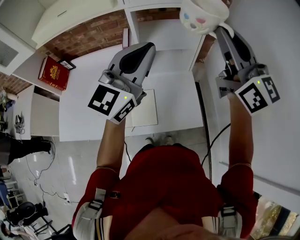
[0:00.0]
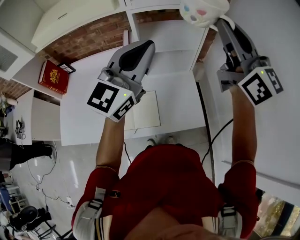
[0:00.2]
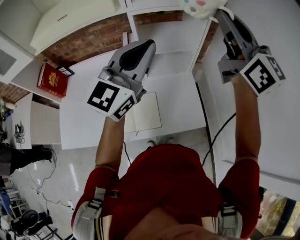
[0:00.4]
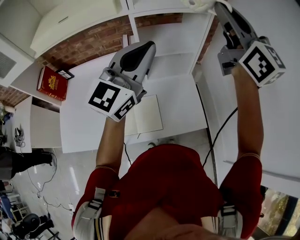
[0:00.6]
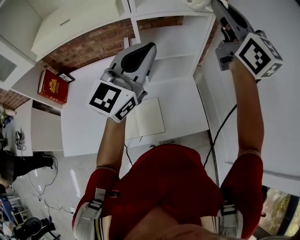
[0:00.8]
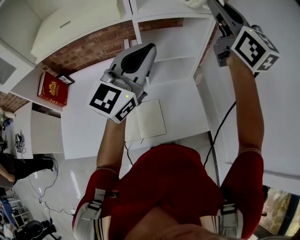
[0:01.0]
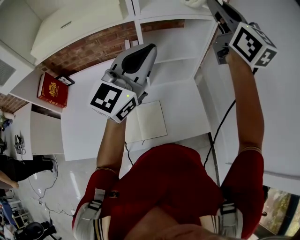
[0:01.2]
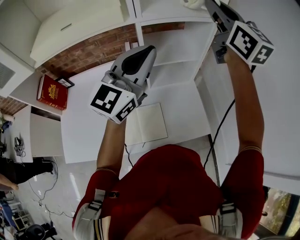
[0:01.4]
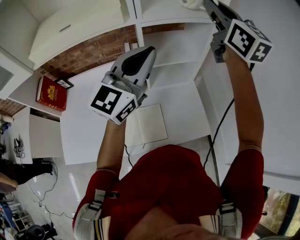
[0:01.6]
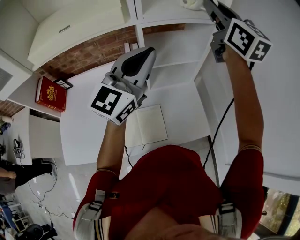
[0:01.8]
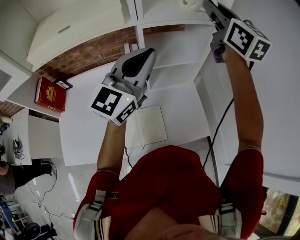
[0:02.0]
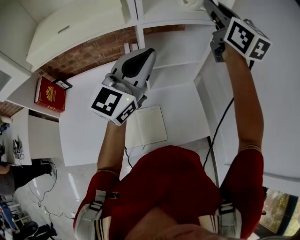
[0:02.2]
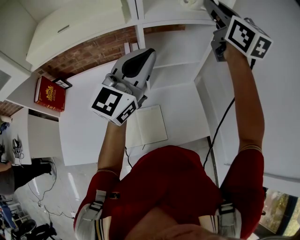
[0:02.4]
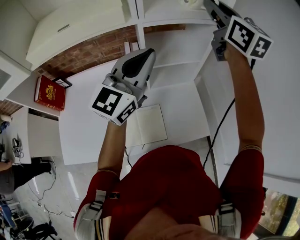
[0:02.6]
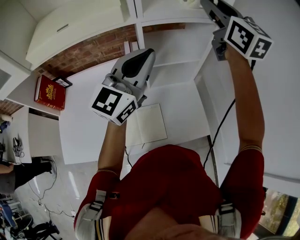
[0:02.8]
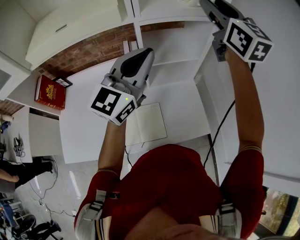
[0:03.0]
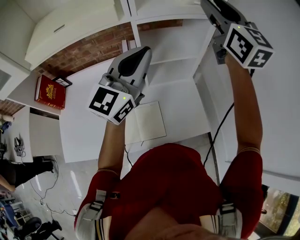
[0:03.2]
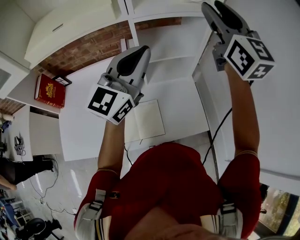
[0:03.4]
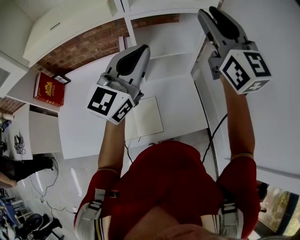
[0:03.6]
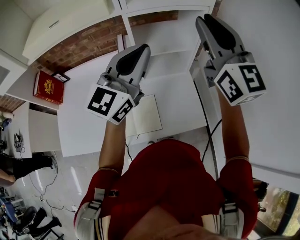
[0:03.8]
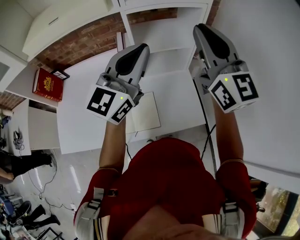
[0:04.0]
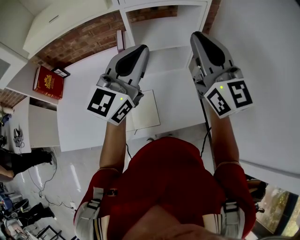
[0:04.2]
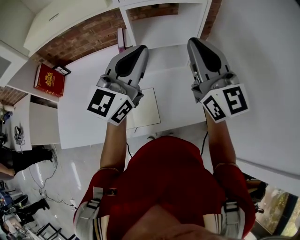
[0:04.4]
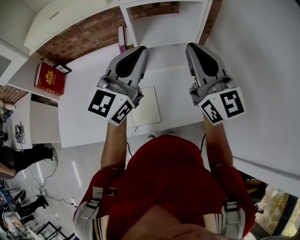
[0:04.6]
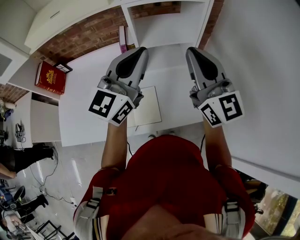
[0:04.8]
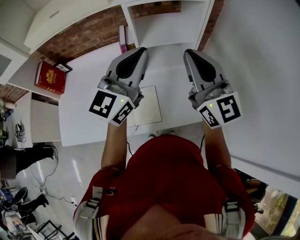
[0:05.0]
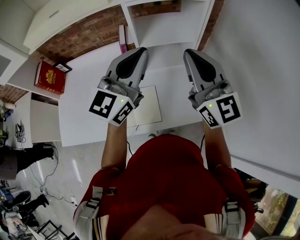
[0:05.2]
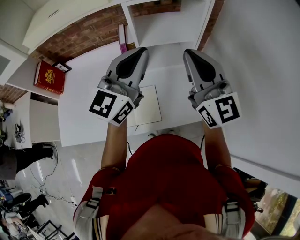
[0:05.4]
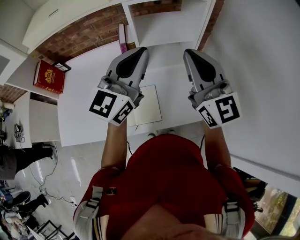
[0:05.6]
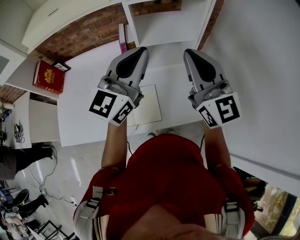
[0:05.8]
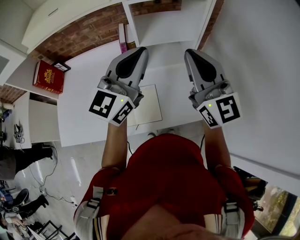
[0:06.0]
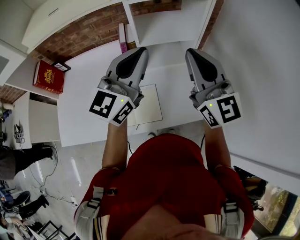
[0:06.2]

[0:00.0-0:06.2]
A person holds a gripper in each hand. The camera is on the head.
0.0 to 1.6 s: The left gripper moves to the left and forward, roughly 10 cm, while the right gripper heads forward and to the left, covering some 15 cm.
1.6 to 3.2 s: The right gripper opens.
3.2 to 4.6 s: The right gripper heads backward and downward, covering about 20 cm, and closes up; the left gripper shifts about 5 cm backward.
4.6 to 6.2 s: The grippers stay close to where they were, moving slightly.

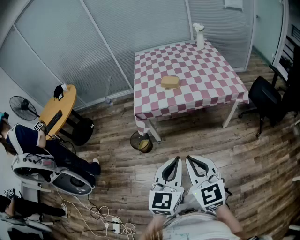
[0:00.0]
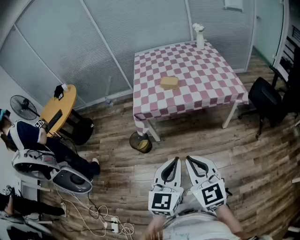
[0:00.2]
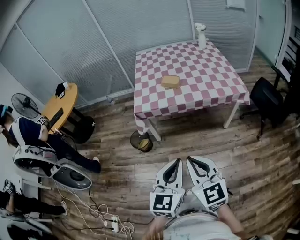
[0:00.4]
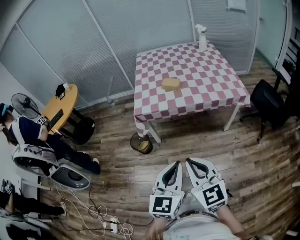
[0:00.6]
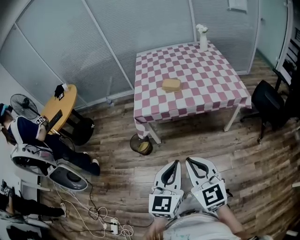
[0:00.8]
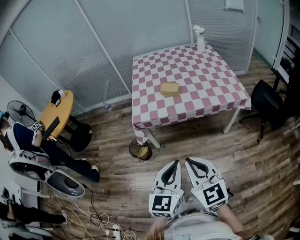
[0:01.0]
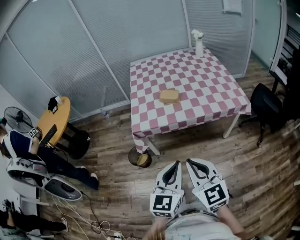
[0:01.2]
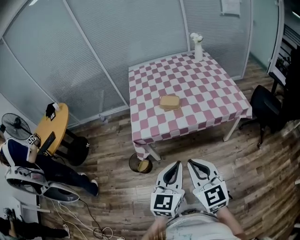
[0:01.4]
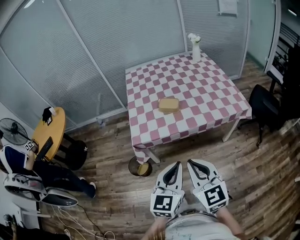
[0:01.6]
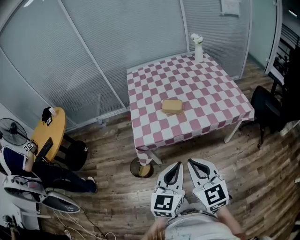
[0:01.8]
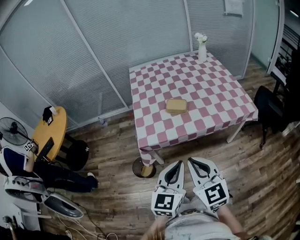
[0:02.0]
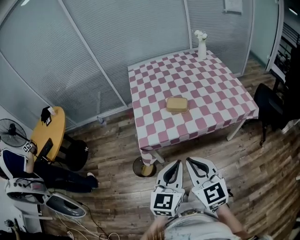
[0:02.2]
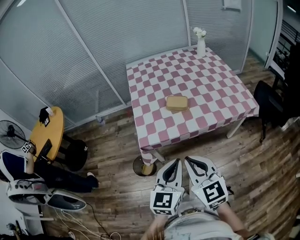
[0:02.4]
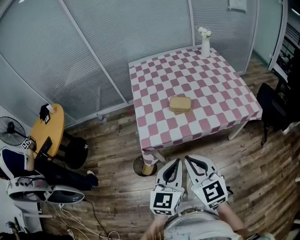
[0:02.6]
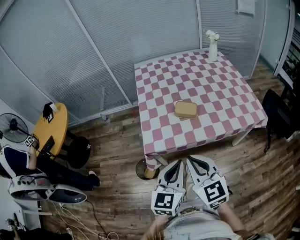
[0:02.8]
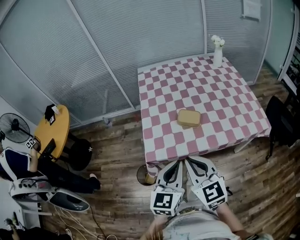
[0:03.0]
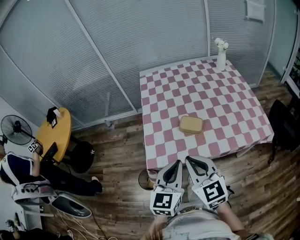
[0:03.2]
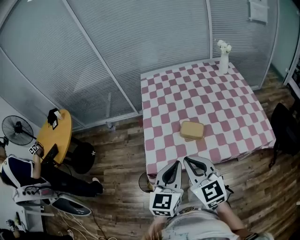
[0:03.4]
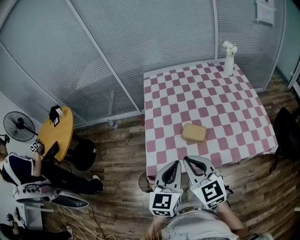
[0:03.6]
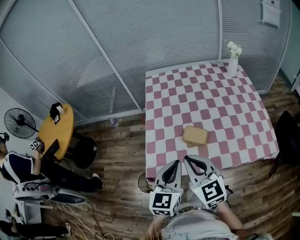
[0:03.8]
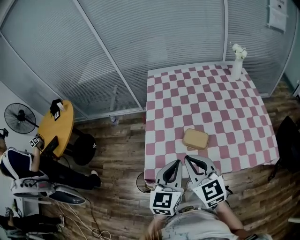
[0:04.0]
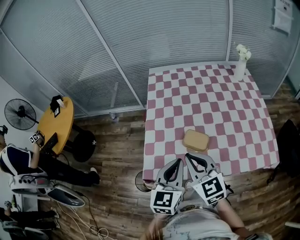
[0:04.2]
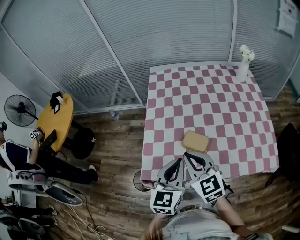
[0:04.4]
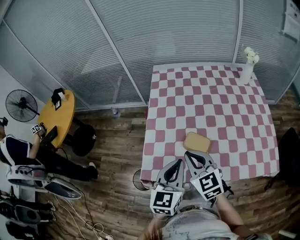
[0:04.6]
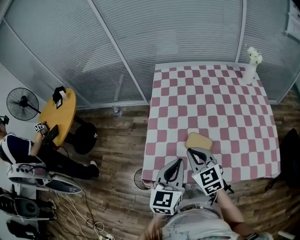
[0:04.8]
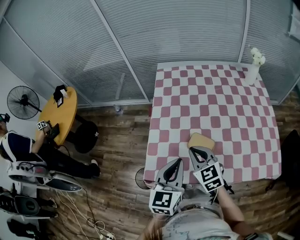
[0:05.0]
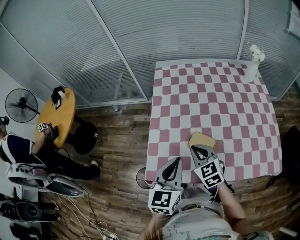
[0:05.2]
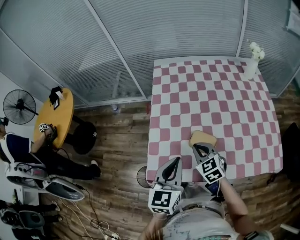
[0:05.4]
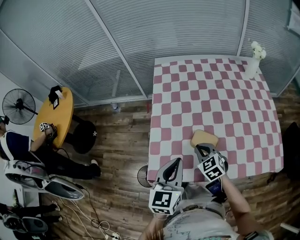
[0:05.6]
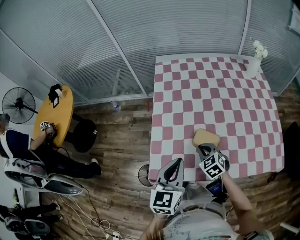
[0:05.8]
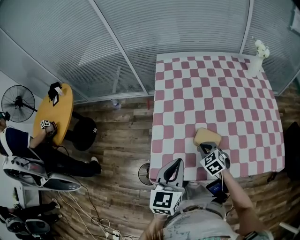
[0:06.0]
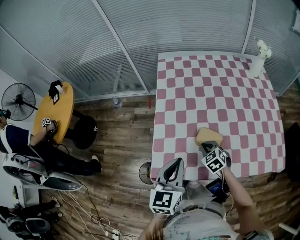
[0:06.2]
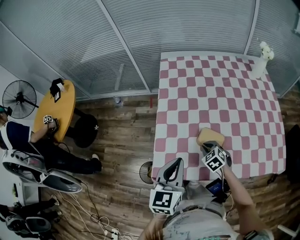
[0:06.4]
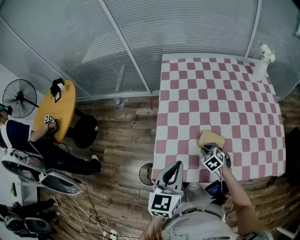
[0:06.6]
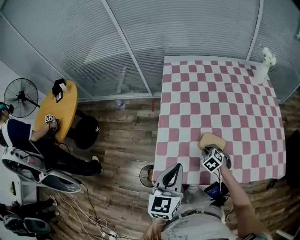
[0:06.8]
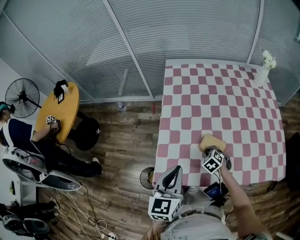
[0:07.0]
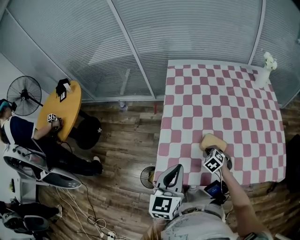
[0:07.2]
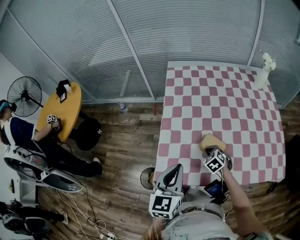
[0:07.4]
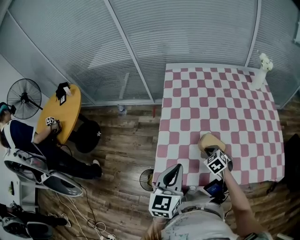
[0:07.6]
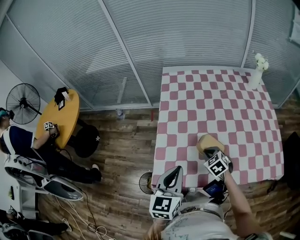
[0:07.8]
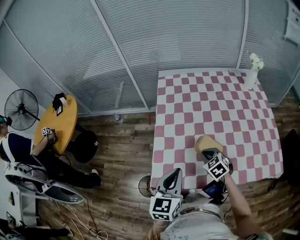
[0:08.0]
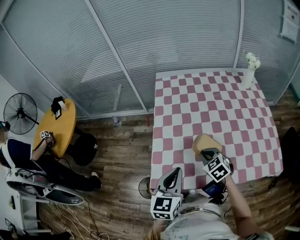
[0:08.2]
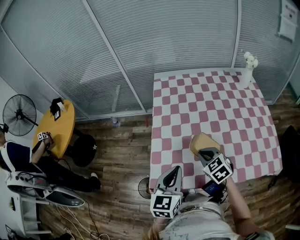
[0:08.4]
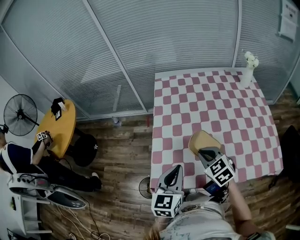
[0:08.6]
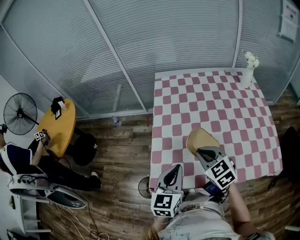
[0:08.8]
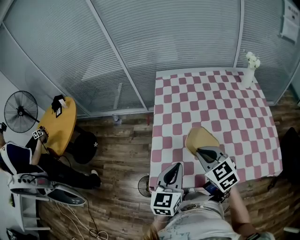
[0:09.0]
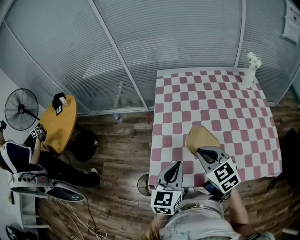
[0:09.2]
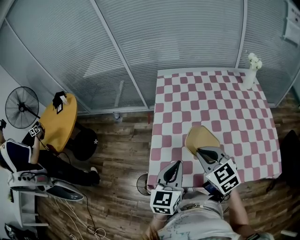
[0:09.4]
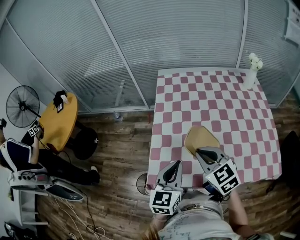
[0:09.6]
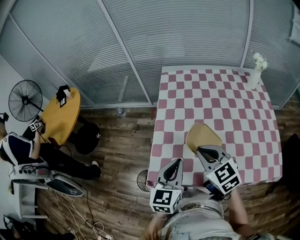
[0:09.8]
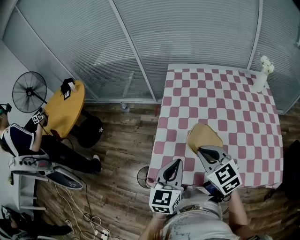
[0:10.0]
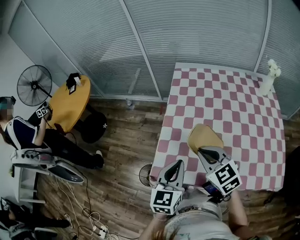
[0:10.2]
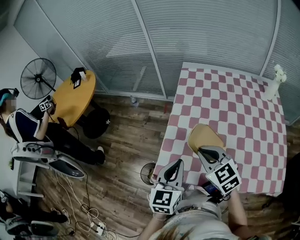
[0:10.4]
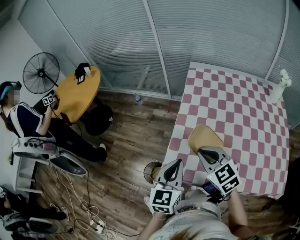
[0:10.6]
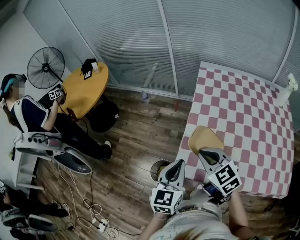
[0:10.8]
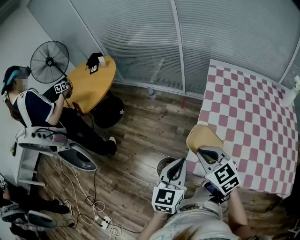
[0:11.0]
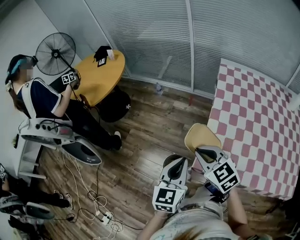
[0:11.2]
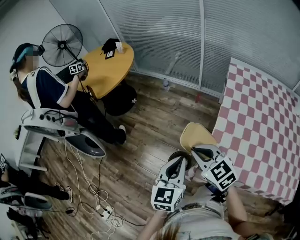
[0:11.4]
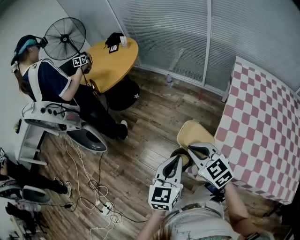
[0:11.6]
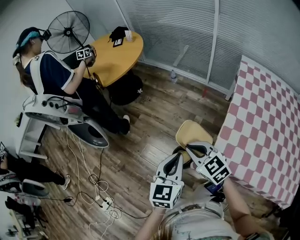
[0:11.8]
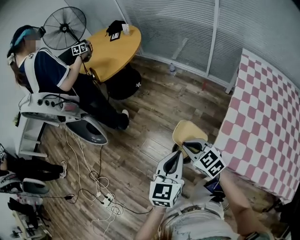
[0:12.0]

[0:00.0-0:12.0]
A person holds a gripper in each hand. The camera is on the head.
0.0 to 1.6 s: Both grippers move forward, roughly 20 cm.
1.6 to 3.0 s: The two grippers go approximately 20 cm forward and to the left.
3.0 to 4.4 s: Both grippers travel together forward, roughly 20 cm.
4.4 to 6.0 s: The right gripper goes about 20 cm downward, and tips its fingers downward by about 30 degrees. The left gripper moves to the left, approximately 5 cm.
7.6 to 9.0 s: The right gripper goes approximately 20 cm upward, and turns by about 30 degrees.
9.0 to 10.4 s: The grippers move only a little.
10.4 to 12.0 s: The two grippers go approximately 35 cm to the left. The right gripper changes its angle by some 30 degrees.

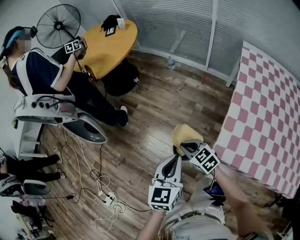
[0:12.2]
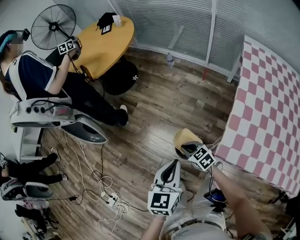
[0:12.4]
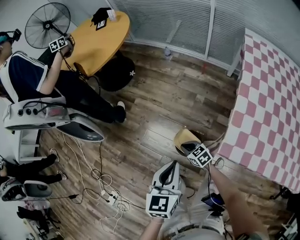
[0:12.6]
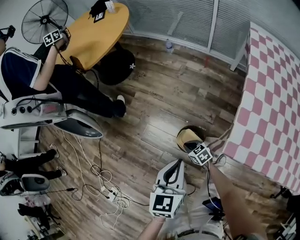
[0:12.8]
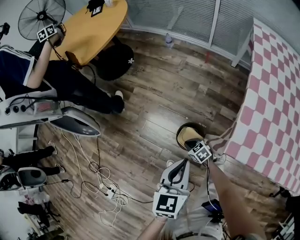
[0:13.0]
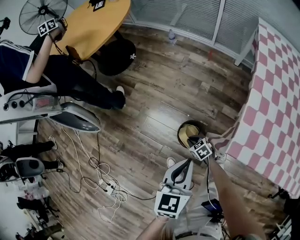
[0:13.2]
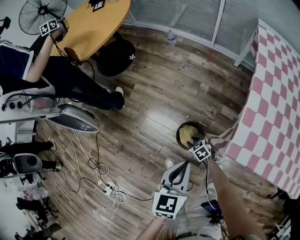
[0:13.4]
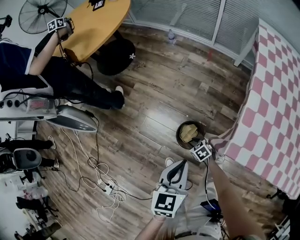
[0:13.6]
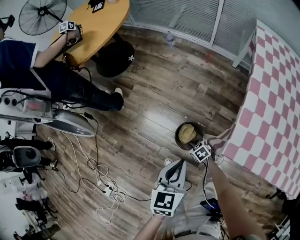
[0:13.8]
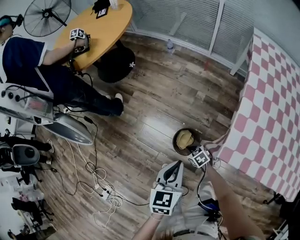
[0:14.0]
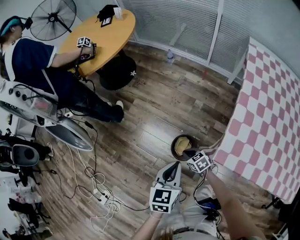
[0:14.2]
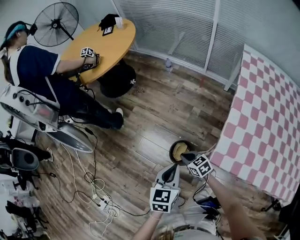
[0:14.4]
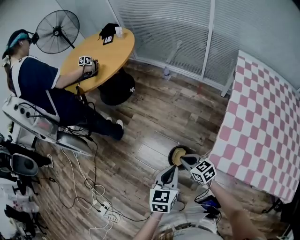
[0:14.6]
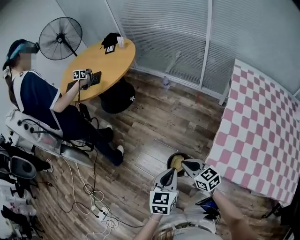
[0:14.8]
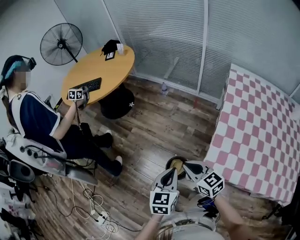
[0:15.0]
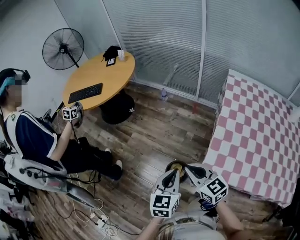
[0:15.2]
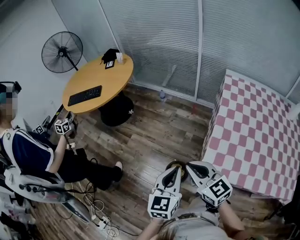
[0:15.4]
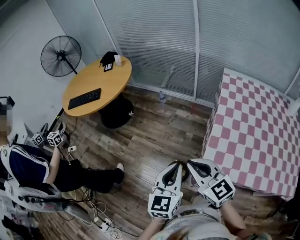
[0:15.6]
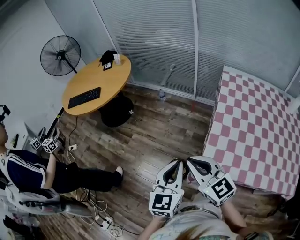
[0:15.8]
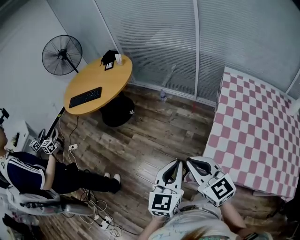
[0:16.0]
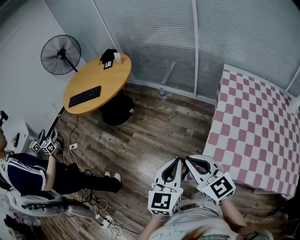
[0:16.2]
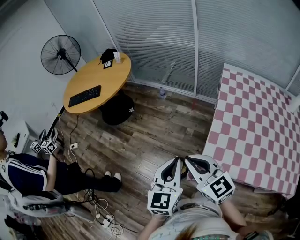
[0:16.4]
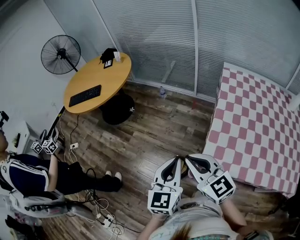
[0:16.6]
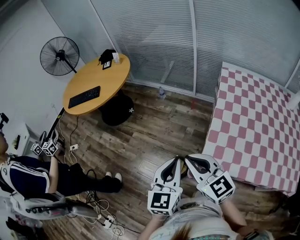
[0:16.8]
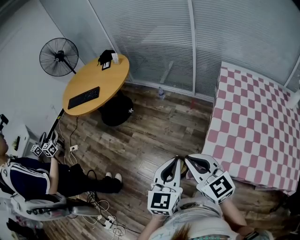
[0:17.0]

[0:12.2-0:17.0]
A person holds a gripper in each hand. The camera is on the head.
12.2 to 13.8 s: The right gripper moves downward, approximately 30 cm, and swivels some 30 degrees. The left gripper moves downward, about 10 cm.
13.8 to 15.4 s: The left gripper is displaced upward by about 20 cm; the right gripper moves upward, about 50 cm, and tilts its fingers roughly 50 degrees upward.
15.4 to 17.0 s: There are only small adjustments of the grippers.

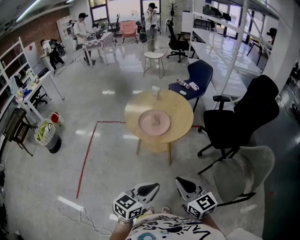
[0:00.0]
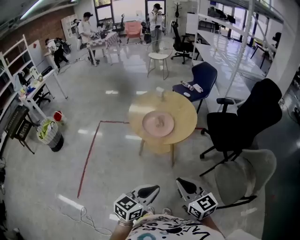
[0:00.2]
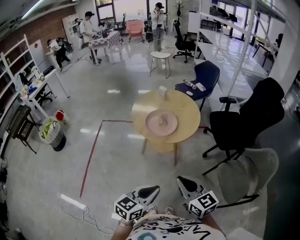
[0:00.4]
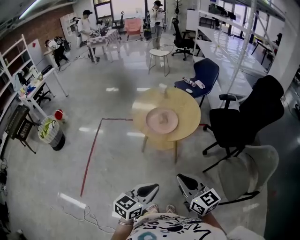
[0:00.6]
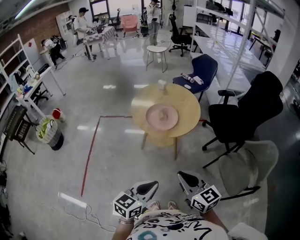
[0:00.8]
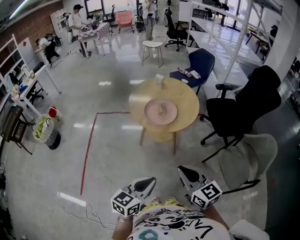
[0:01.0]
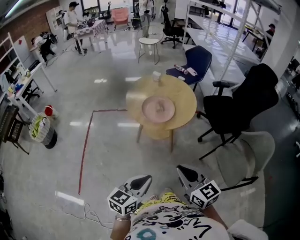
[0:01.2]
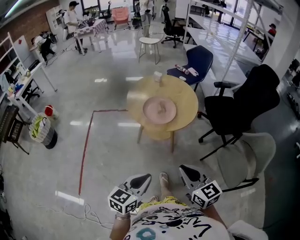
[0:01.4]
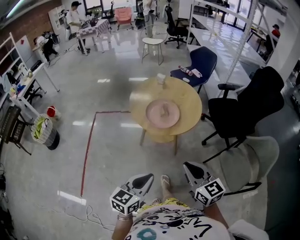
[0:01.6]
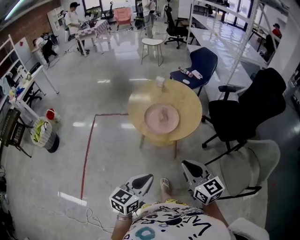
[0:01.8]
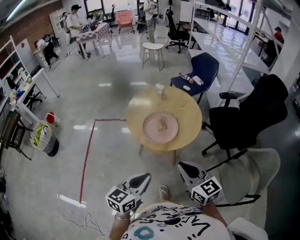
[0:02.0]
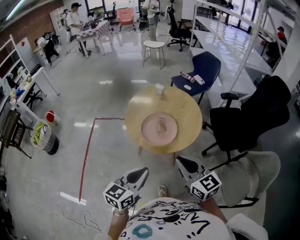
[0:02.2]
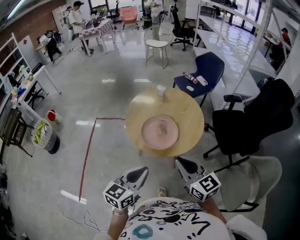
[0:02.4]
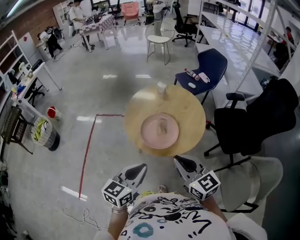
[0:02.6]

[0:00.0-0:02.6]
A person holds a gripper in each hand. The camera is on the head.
0.0 to 1.2 s: The grippers both shift to the left by some 10 cm.
1.2 to 2.6 s: Both grippers move forward, some 25 cm.
